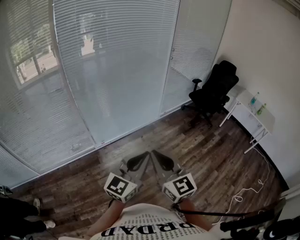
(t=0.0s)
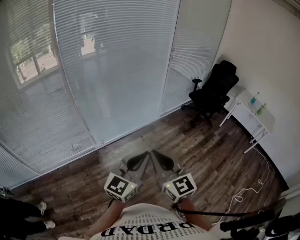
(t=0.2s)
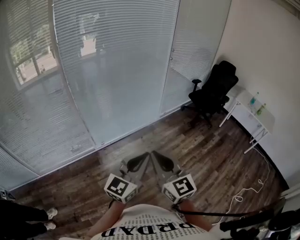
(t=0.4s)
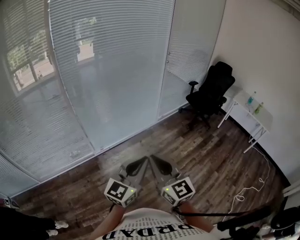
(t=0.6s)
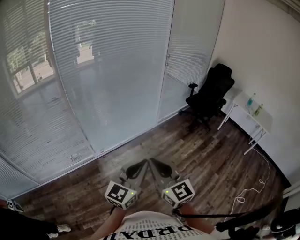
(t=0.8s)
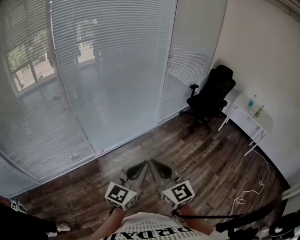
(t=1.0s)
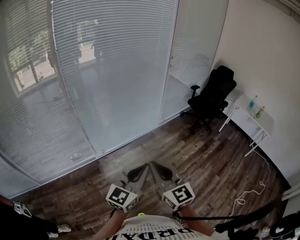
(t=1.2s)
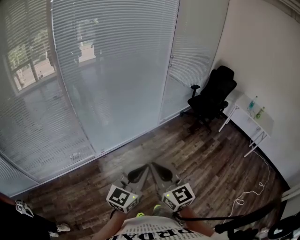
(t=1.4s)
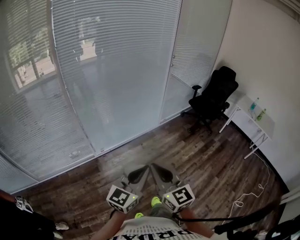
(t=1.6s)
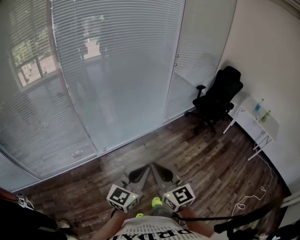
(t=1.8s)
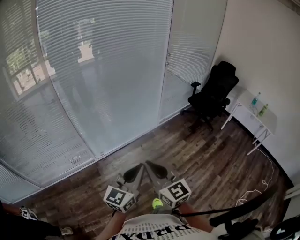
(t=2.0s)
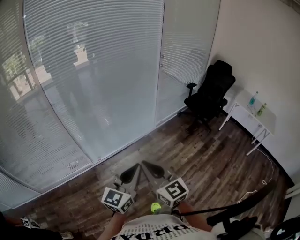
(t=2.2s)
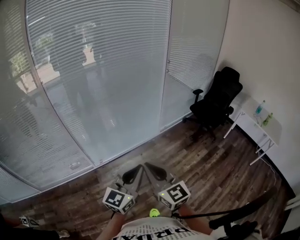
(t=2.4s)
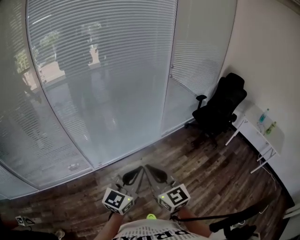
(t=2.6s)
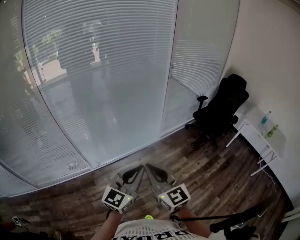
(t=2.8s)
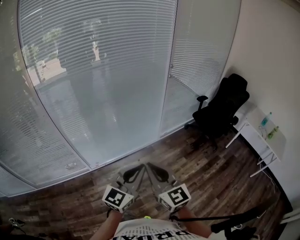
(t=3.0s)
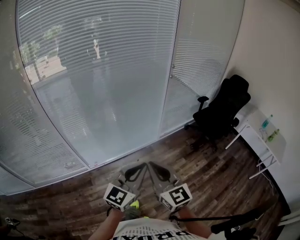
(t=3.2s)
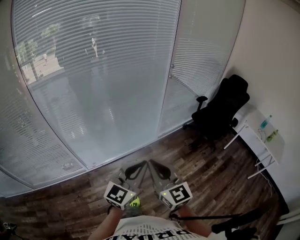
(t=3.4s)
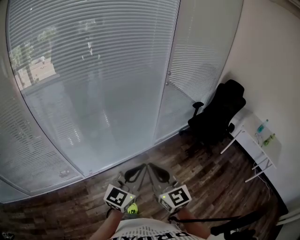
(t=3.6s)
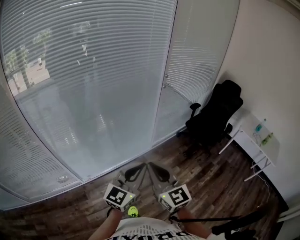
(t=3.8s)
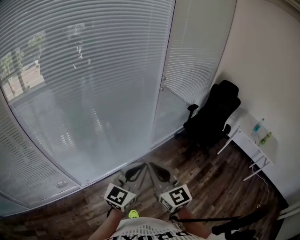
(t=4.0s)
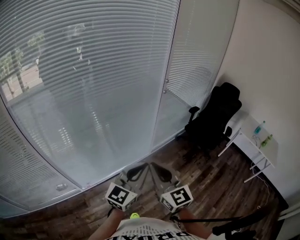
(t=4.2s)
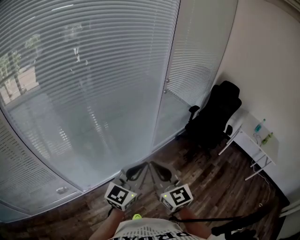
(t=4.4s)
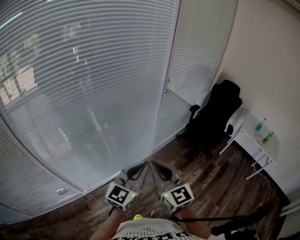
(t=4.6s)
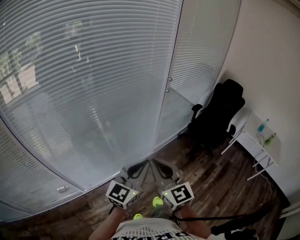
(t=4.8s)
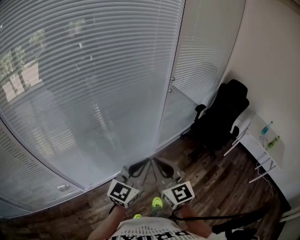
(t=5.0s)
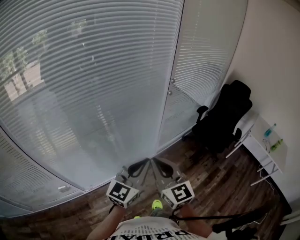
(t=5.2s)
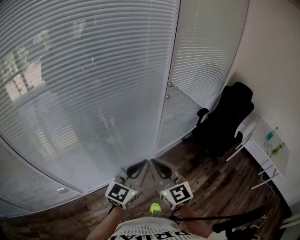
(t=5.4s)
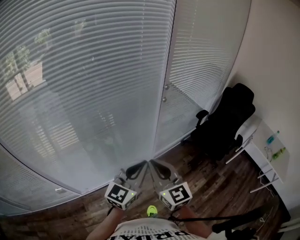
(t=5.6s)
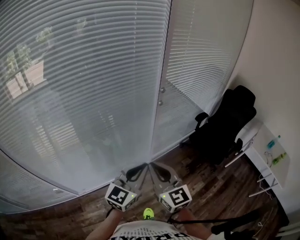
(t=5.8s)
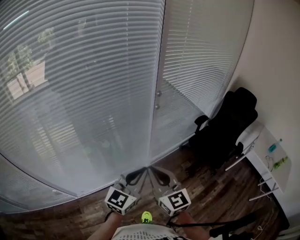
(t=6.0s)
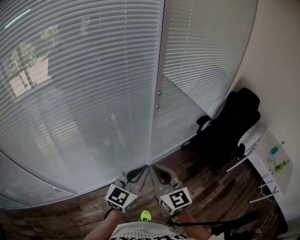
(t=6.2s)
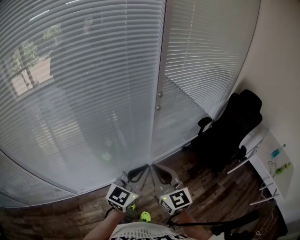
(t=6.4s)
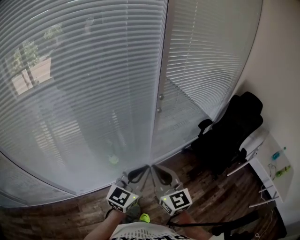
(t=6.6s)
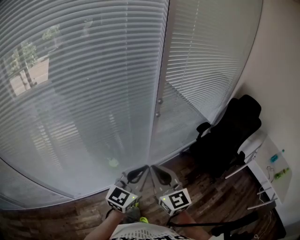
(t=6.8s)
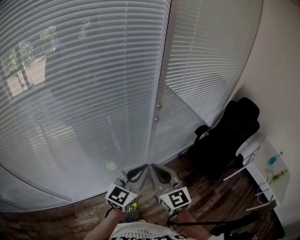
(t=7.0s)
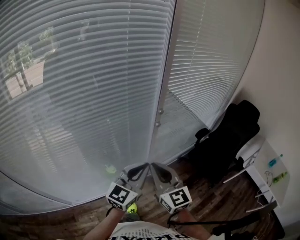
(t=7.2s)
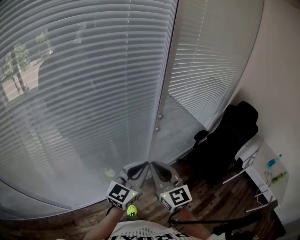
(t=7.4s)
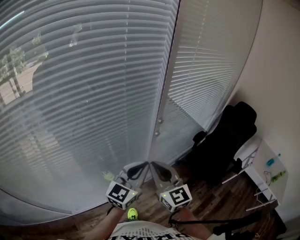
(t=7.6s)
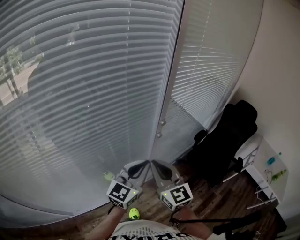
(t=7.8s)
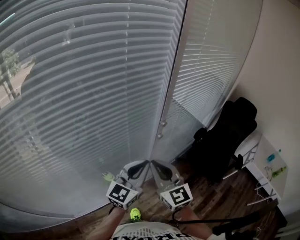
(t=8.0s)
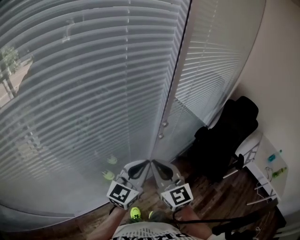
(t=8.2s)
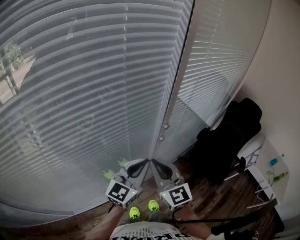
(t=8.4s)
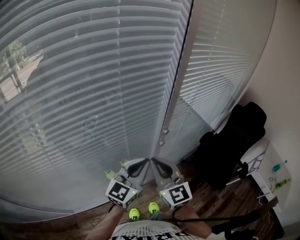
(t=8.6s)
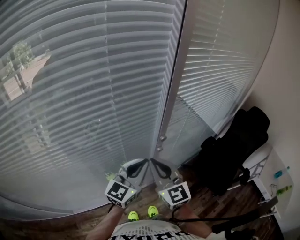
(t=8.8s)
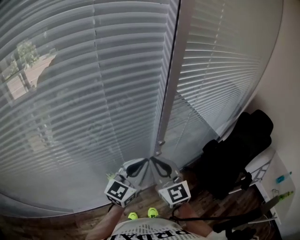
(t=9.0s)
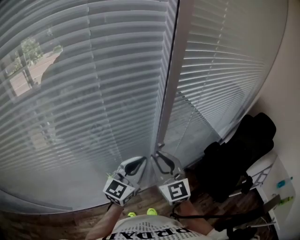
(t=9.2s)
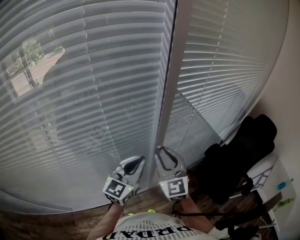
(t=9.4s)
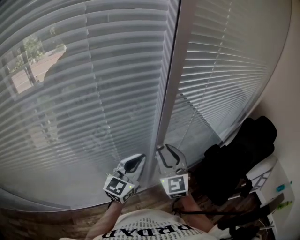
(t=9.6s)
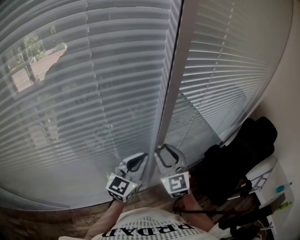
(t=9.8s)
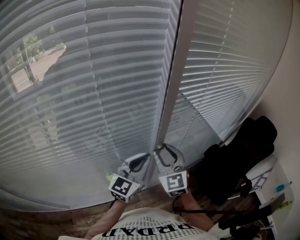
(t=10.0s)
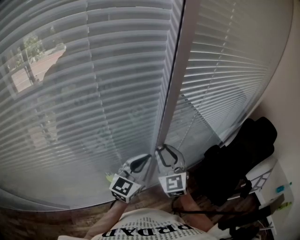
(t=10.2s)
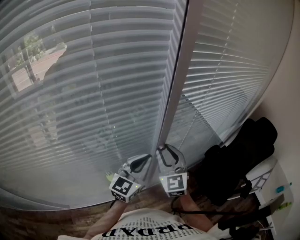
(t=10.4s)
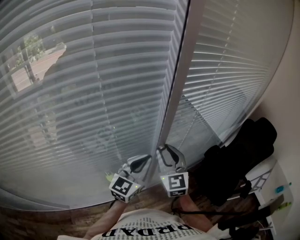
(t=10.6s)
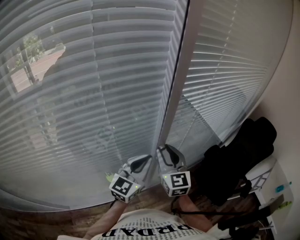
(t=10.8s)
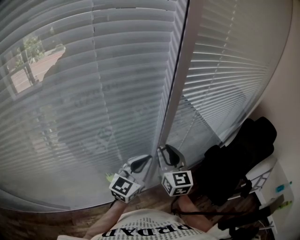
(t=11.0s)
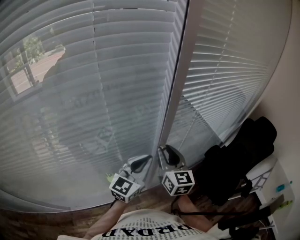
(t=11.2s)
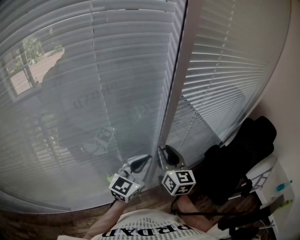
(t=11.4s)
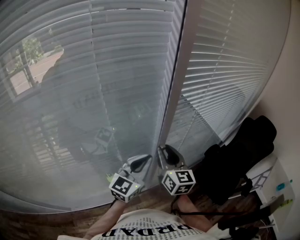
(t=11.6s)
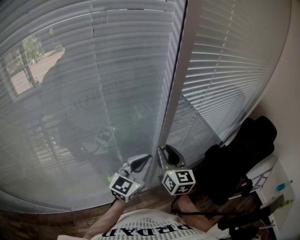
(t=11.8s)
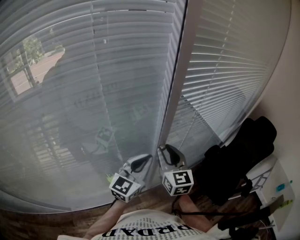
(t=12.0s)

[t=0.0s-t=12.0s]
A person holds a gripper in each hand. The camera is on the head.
t=0.0s to t=1.6s: The left gripper moves about 5 cm.
t=1.6s to t=3.0s: The two grippers go approximately 25 cm forward and to the right.
t=3.0s to t=4.4s: The grippers both shift forward by about 25 cm.
t=4.4s to t=6.0s: The grippers both shift forward and to the right by approximately 25 cm.
t=6.0s to t=7.6s: Both grippers travel together forward, some 20 cm.
t=7.6s to t=9.0s: Both grippers move forward, approximately 15 cm.
t=9.0s to t=10.4s: The left gripper moves some 5 cm, while the right gripper moves forward, approximately 10 cm, and opens up.
t=10.4s to t=12.0s: The right gripper rotates about 20 degrees.

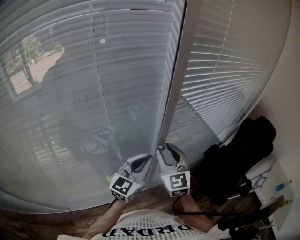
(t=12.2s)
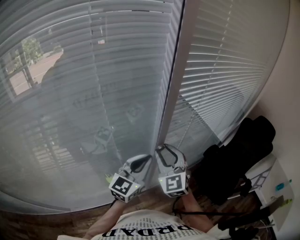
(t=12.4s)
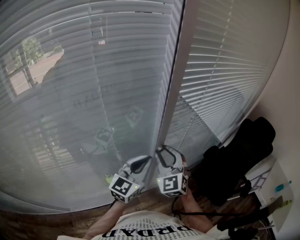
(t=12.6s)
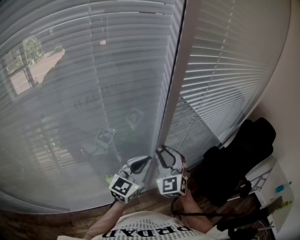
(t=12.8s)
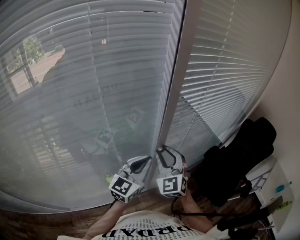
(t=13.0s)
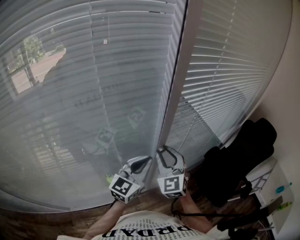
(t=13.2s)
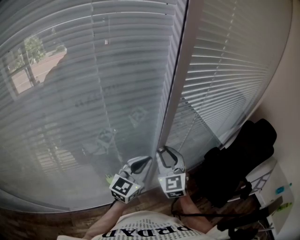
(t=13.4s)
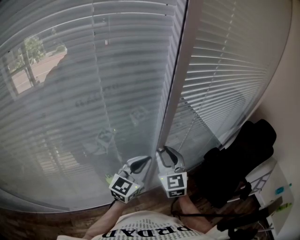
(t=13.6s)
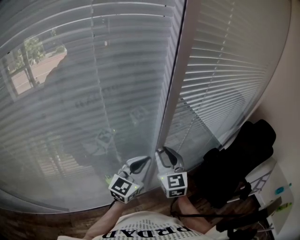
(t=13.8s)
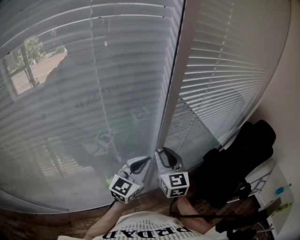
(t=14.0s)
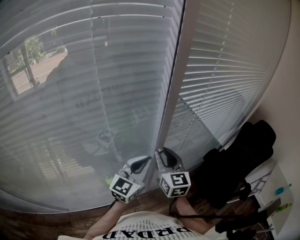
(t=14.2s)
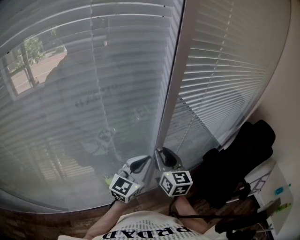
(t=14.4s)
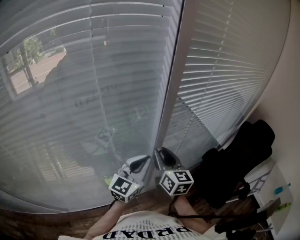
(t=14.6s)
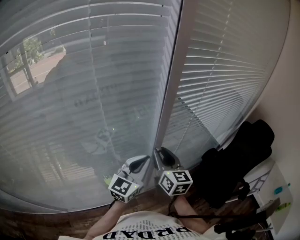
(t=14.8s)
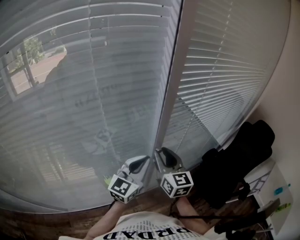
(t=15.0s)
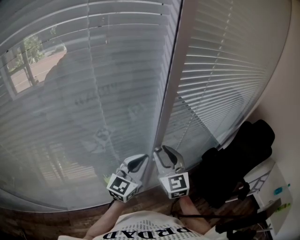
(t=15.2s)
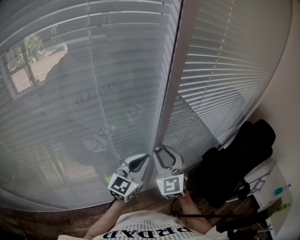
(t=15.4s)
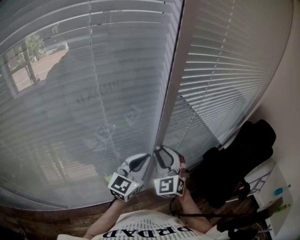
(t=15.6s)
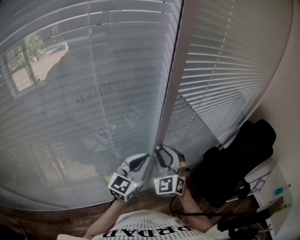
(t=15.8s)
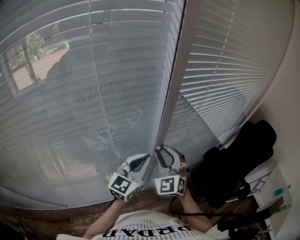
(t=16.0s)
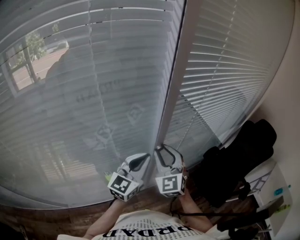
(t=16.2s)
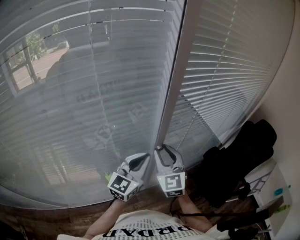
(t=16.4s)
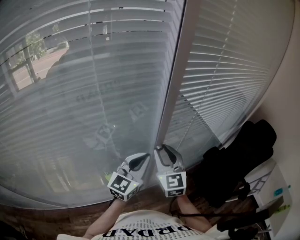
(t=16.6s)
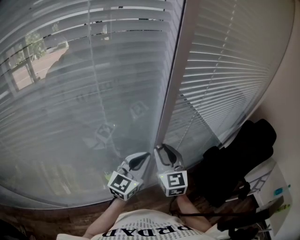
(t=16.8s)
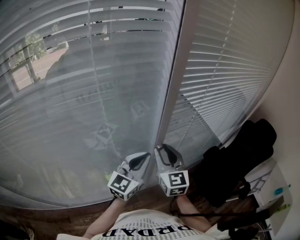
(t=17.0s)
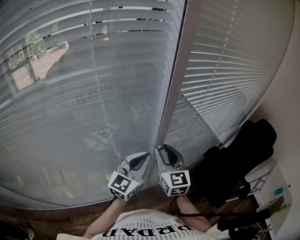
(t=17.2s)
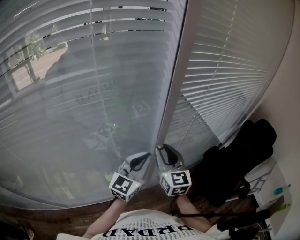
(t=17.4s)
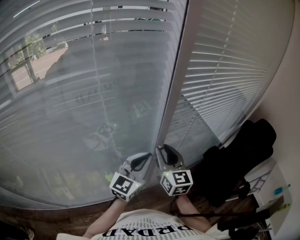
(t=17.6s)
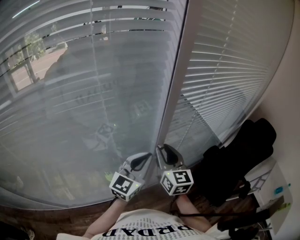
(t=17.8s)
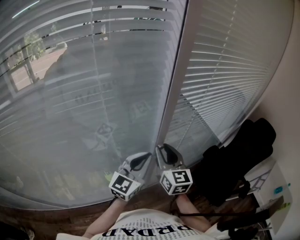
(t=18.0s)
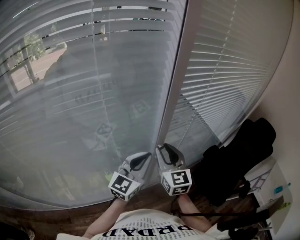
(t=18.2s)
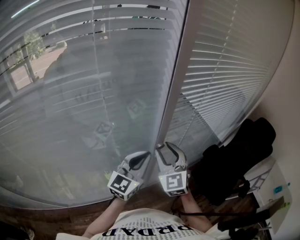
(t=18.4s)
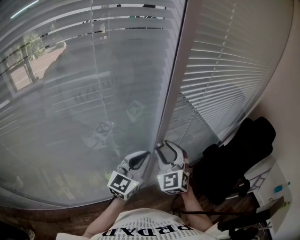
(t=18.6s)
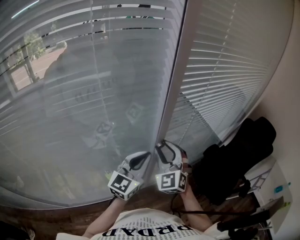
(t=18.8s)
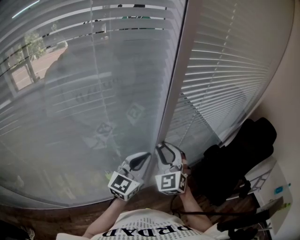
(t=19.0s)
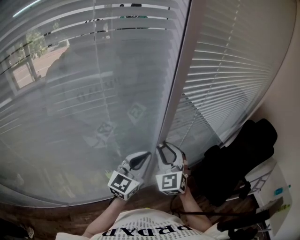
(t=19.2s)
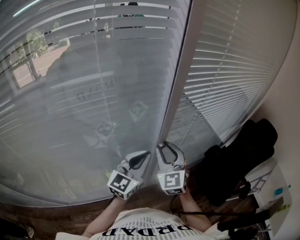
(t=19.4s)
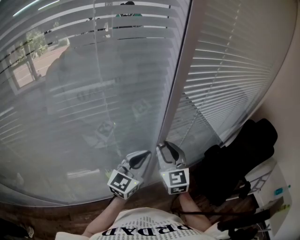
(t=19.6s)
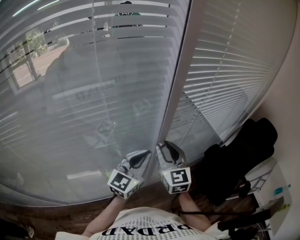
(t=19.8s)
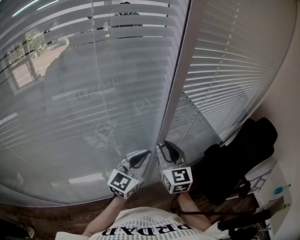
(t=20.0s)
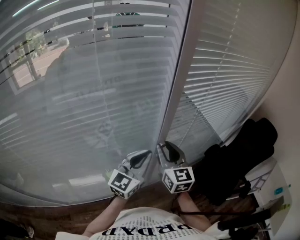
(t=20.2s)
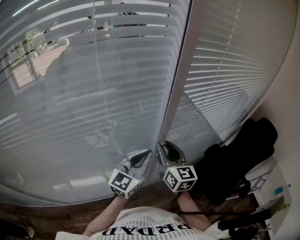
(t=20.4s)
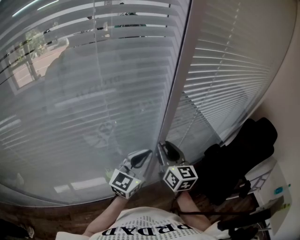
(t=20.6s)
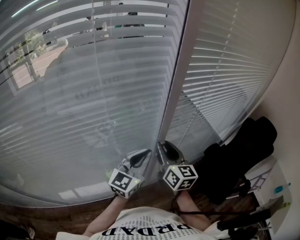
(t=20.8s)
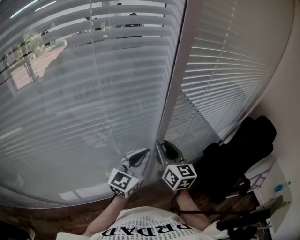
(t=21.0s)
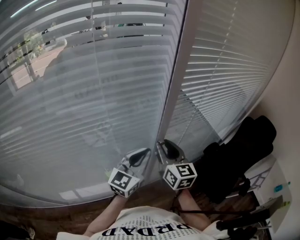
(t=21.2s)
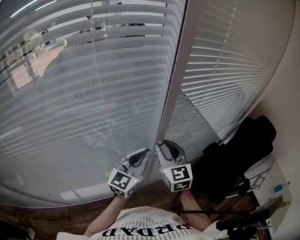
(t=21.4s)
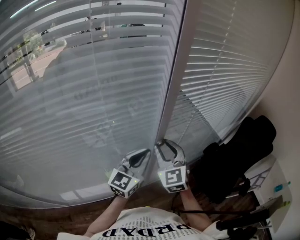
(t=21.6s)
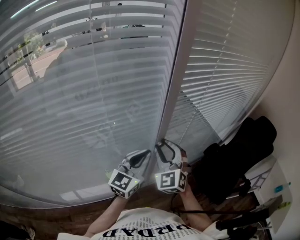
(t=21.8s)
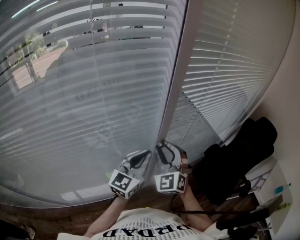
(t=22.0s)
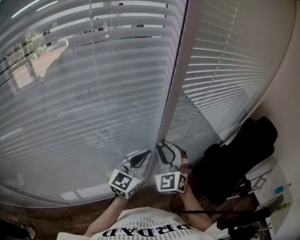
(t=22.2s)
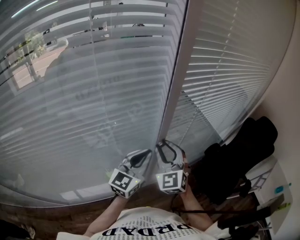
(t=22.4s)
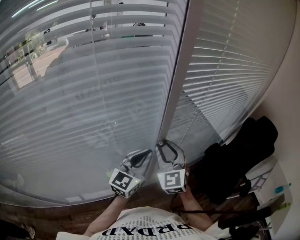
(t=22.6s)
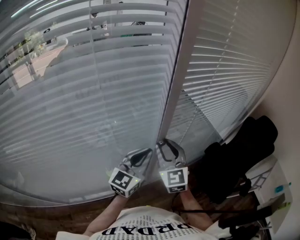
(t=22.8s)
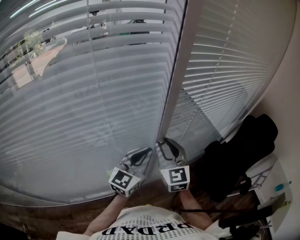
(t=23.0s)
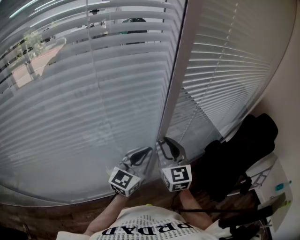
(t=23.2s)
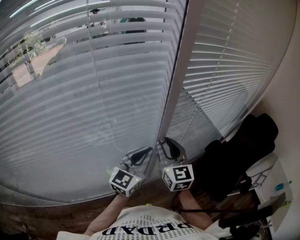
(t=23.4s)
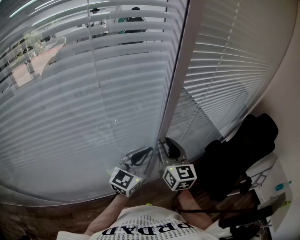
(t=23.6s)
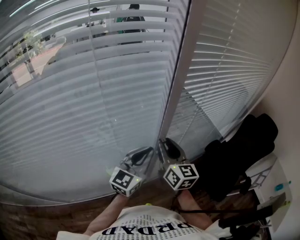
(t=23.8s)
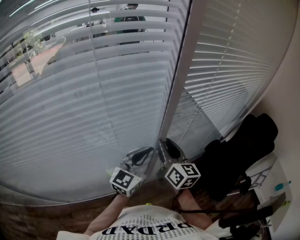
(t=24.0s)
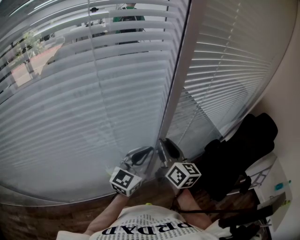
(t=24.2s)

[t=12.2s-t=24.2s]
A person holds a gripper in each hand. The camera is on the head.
t=16.6s to t=18.2s: There are only small adjustments of the grippers.
t=21.2s to t=22.6s: The right gripper rotates approximately 40 degrees.
t=22.6s to t=24.2s: The right gripper twists about 60 degrees clockwise, seen from behind.
